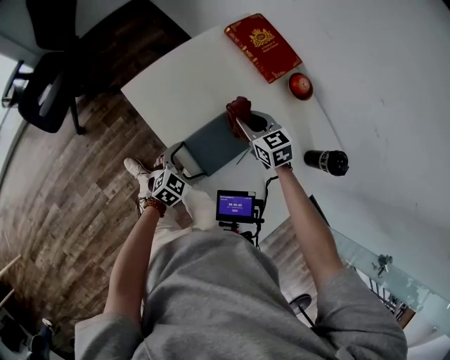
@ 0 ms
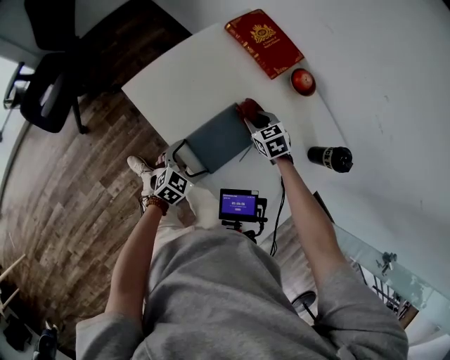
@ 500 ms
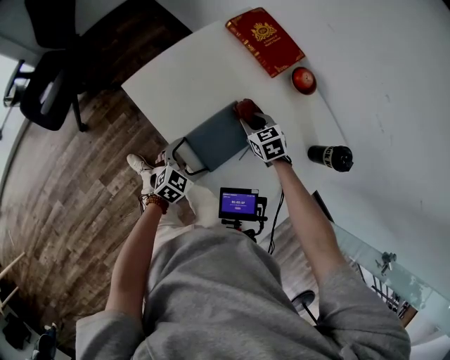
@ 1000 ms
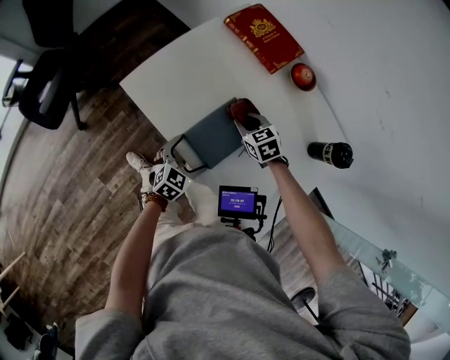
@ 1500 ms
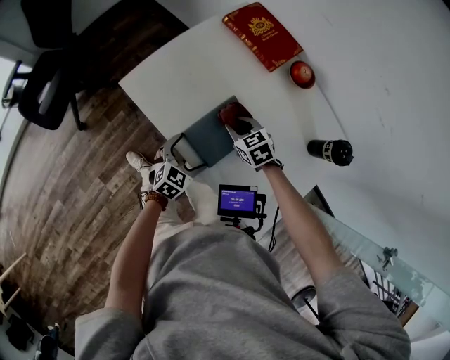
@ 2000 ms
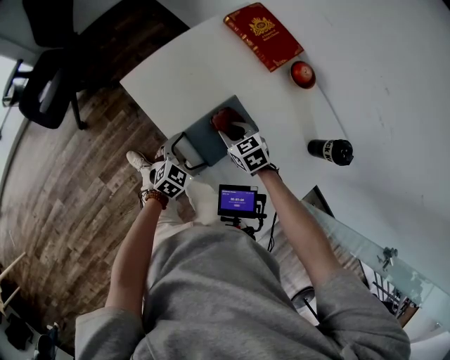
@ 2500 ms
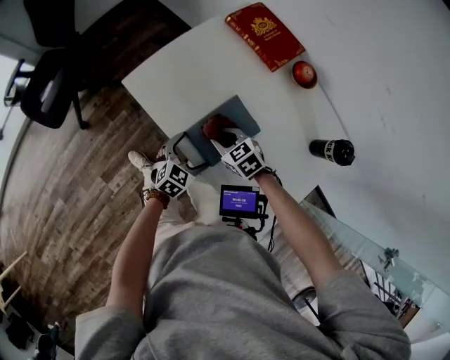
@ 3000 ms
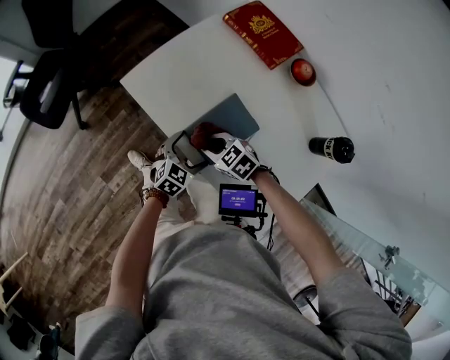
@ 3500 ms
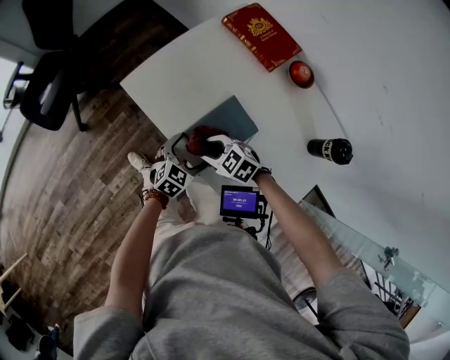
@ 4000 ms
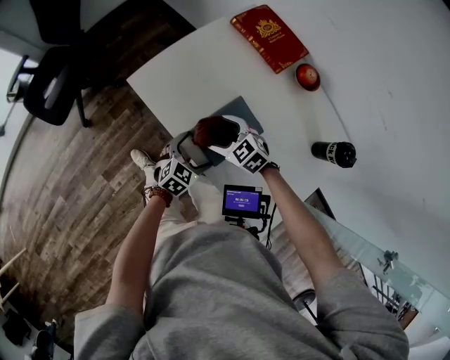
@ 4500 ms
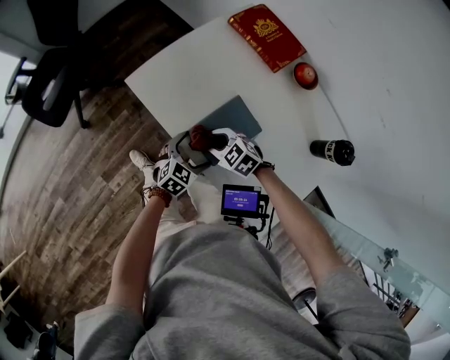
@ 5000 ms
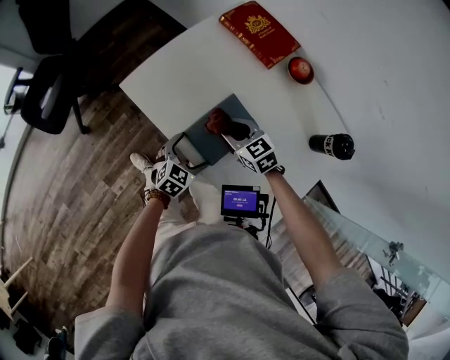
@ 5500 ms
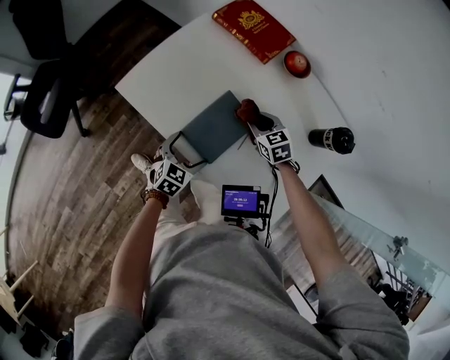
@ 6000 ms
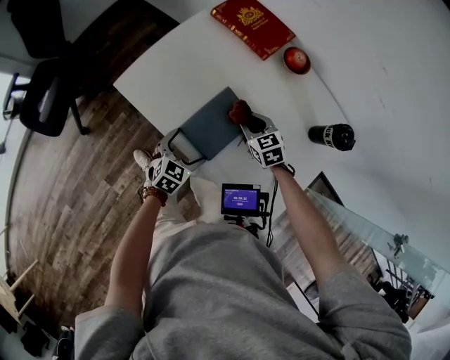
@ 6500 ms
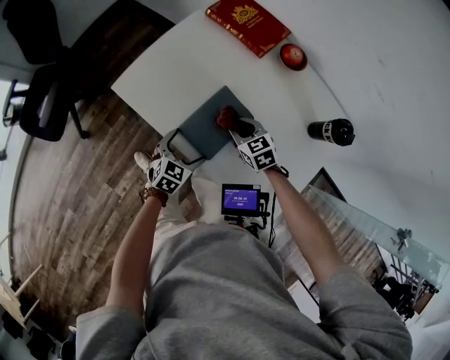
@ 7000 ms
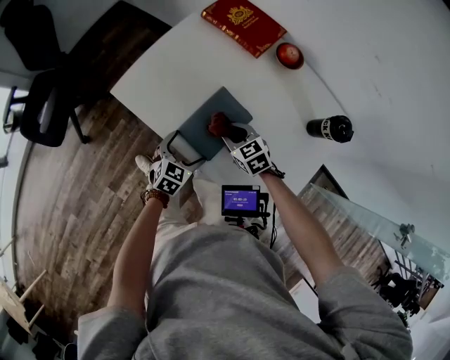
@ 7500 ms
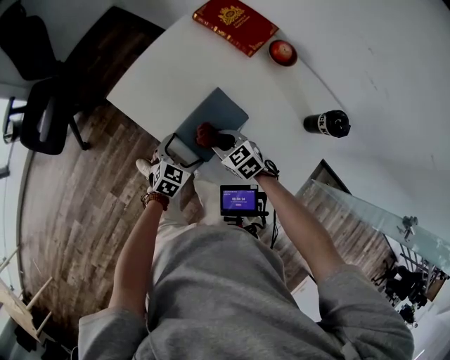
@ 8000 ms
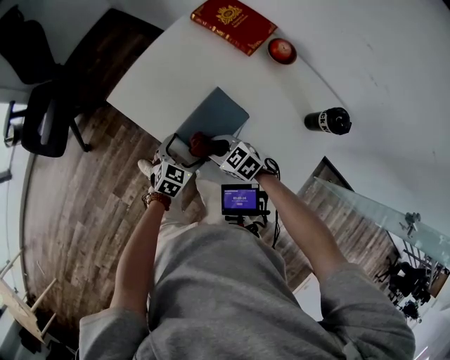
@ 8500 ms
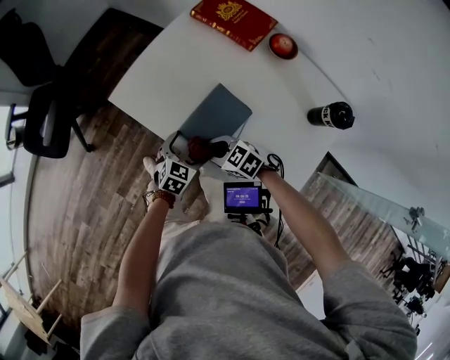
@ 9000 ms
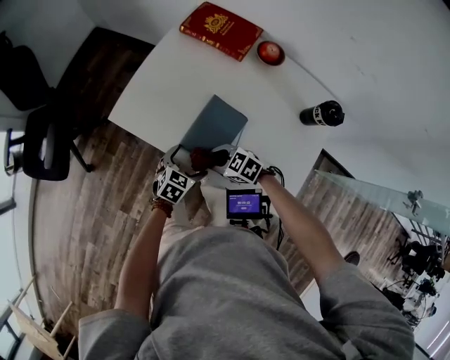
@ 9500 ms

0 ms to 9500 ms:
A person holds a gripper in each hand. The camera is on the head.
0 ms to 2000 ms: The right gripper is displaced downward by about 5 cm.
2000 ms to 4000 ms: The right gripper is displaced to the left and backward by roughly 15 cm, and rotates roughly 30 degrees.
4000 ms to 5500 ms: The right gripper moves to the right and forward, about 10 cm, turns by about 30 degrees, and opens, then closes once more.
5500 ms to 7500 ms: The right gripper reaches about 10 cm to the right, then returns.
7500 ms to 9500 ms: The right gripper shifts by approximately 10 cm, and changes its angle by approximately 20 degrees.

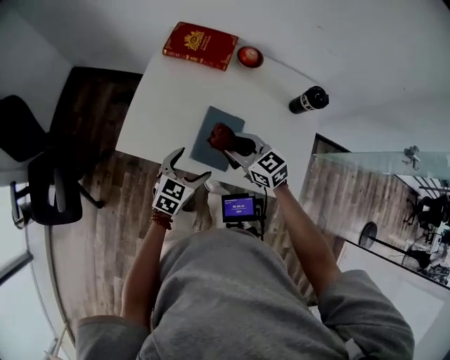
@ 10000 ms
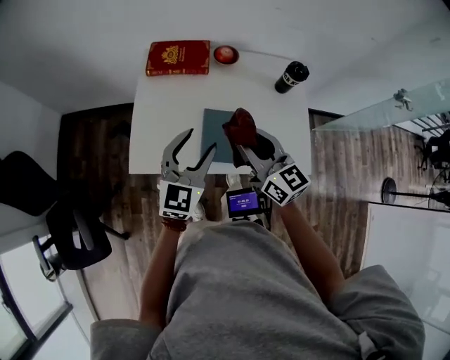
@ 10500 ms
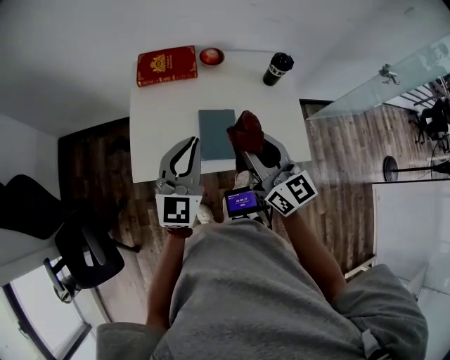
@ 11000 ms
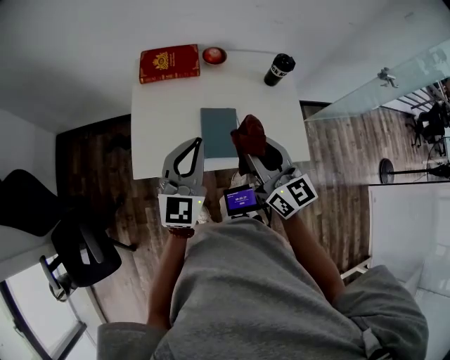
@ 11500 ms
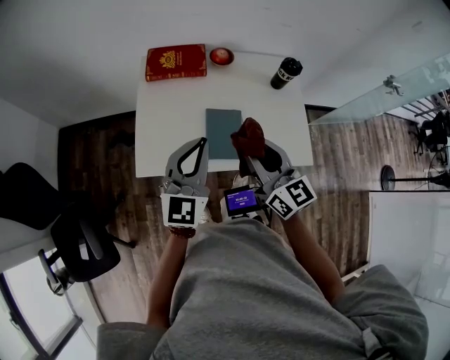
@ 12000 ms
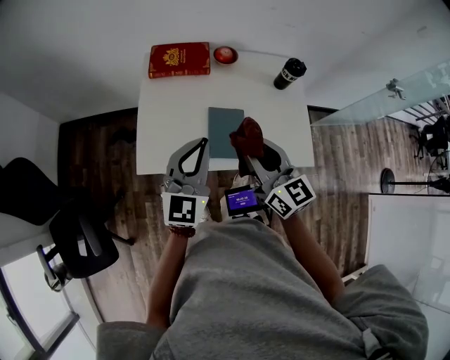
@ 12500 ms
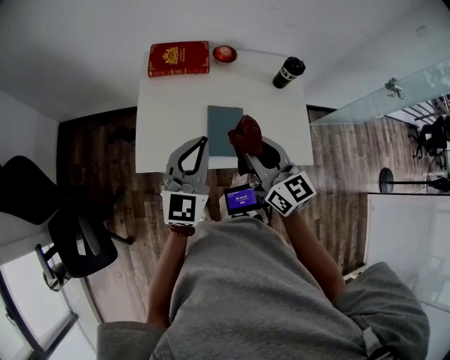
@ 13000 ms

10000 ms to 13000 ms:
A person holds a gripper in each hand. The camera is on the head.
10000 ms to 11500 ms: The left gripper moves upward, approximately 25 cm, tilts its fingers about 30 degrees upward, and closes its fingers, while the right gripper travels upward and backward by roughly 20 cm, and swivels some 50 degrees.
11500 ms to 13000 ms: The grippers move only a little.

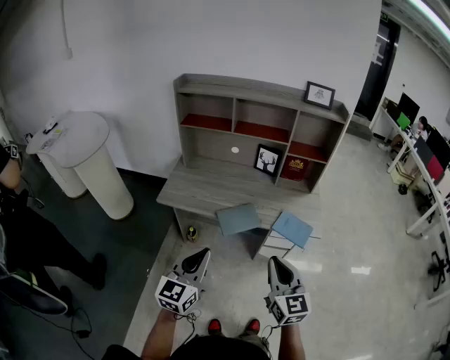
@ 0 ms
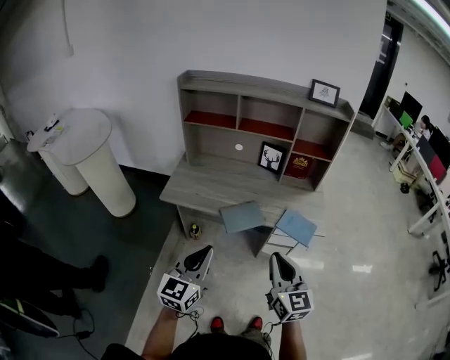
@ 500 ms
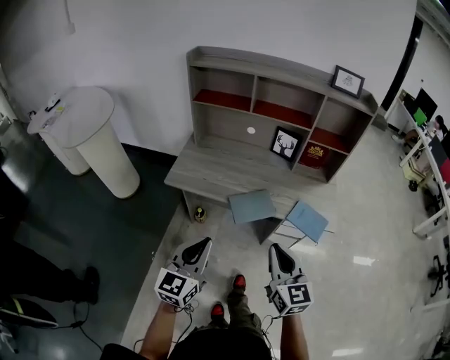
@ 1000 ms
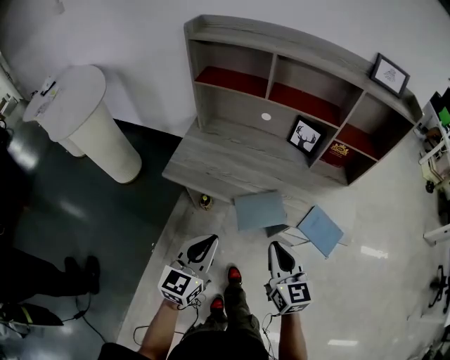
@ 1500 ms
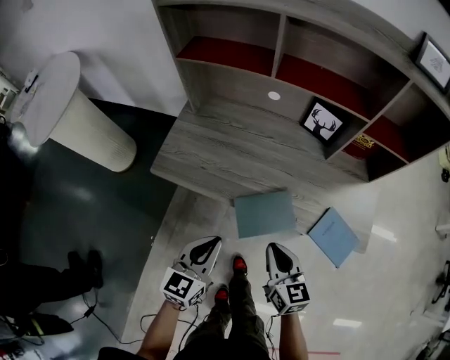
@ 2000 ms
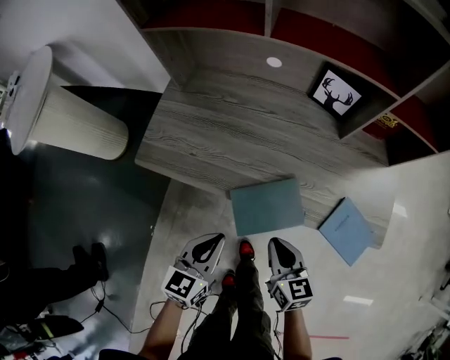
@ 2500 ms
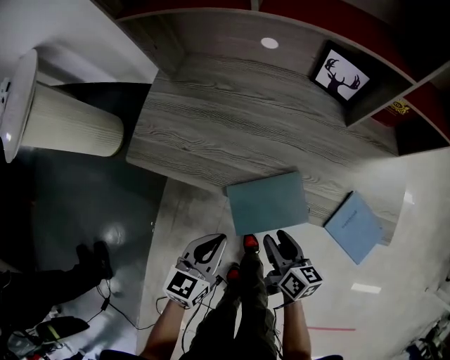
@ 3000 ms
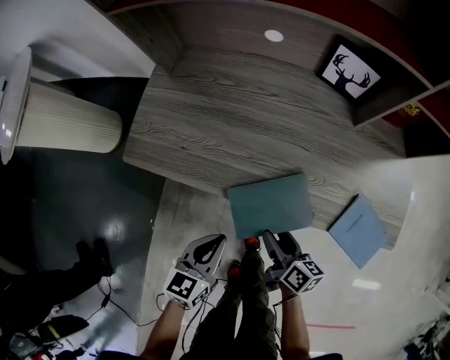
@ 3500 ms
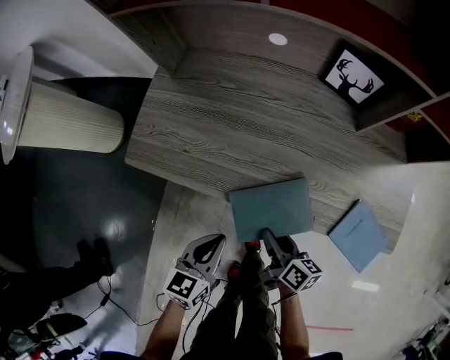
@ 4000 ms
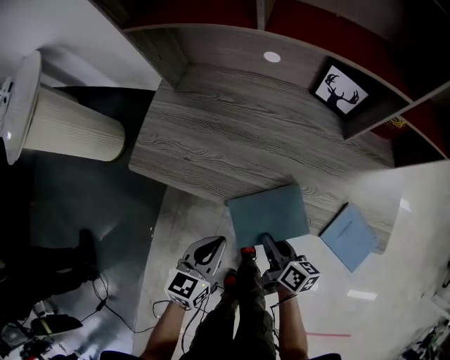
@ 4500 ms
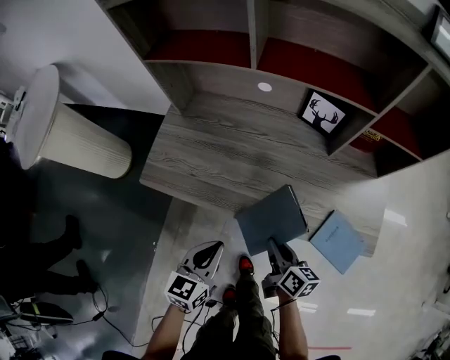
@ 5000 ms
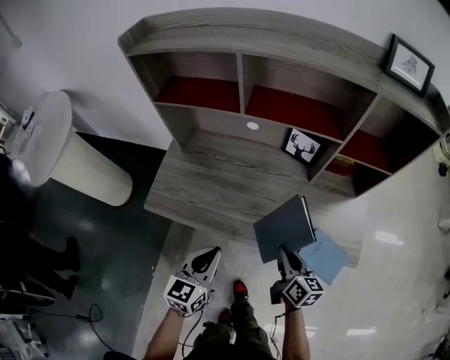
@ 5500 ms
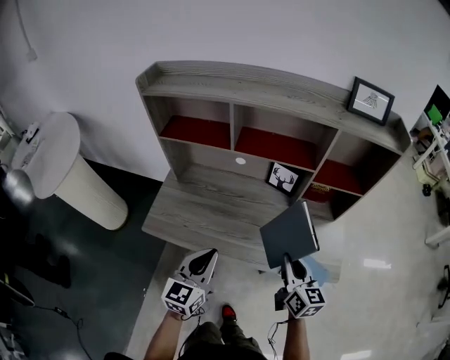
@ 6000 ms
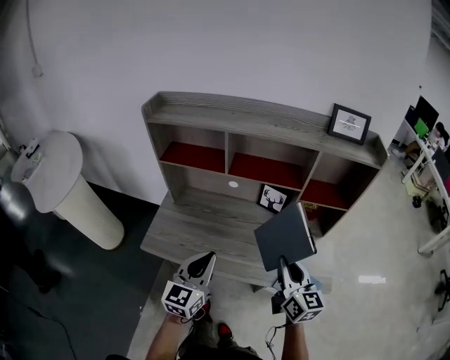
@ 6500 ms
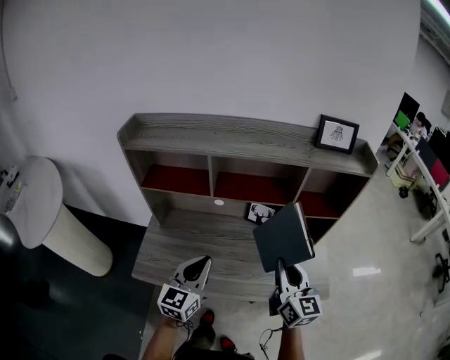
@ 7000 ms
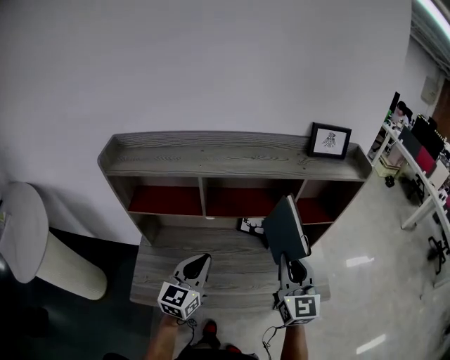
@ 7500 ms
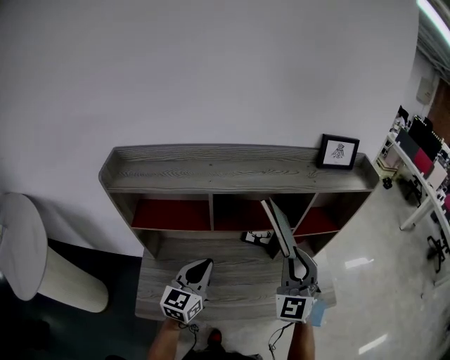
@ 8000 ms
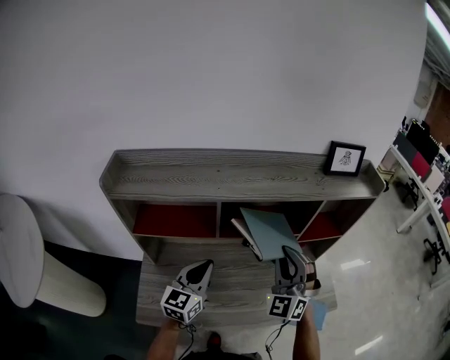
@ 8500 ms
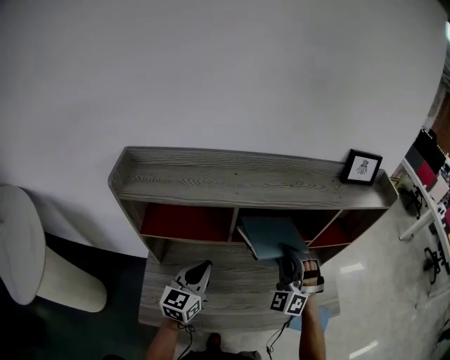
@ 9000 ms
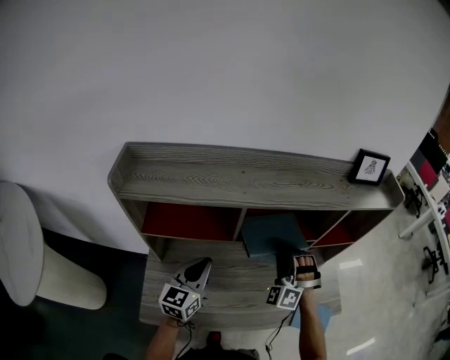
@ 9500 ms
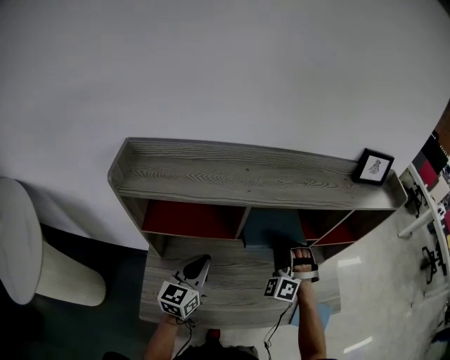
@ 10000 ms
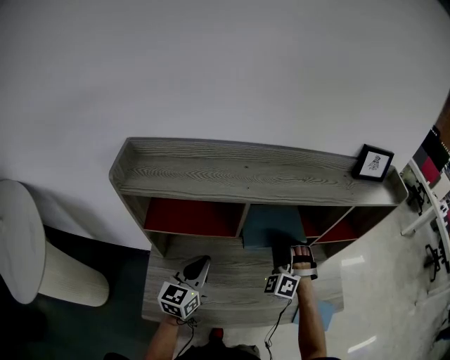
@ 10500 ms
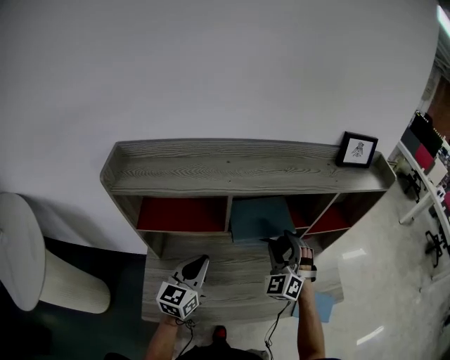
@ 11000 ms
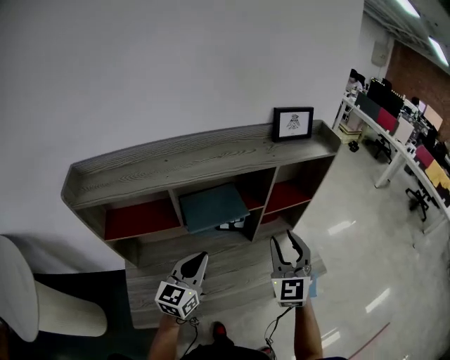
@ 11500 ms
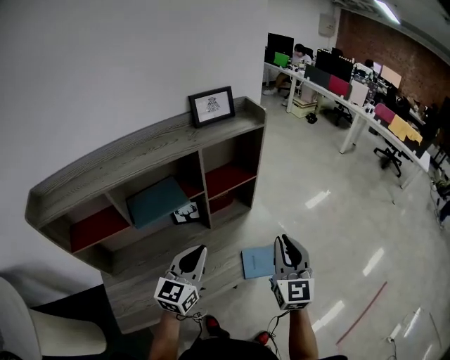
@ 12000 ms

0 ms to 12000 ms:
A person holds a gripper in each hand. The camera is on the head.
0 ms to 2000 ms: The two grippers go about 30 cm forward and downward. The right gripper turns by about 30 degrees.
2000 ms to 4000 ms: The grippers both shift downward by about 15 cm. The right gripper rolls clockwise, seen from behind, by some 40 degrees, and opens its fingers.
4000 ms to 6000 ms: The right gripper travels upward and to the right by some 35 cm, turns by approximately 40 degrees, and closes up; the left gripper heads upward, covering approximately 25 cm, and changes its angle by roughly 30 degrees.
6000 ms to 8000 ms: The right gripper moves upward and forward, about 25 cm, and twists approximately 60 degrees counterclockwise, seen from behind. Meanwhile the left gripper travels forward by approximately 20 cm.
8000 ms to 10000 ms: The left gripper heads to the left, covering roughly 10 cm, while the right gripper goes roughly 20 cm downward, to the left and forward, and rolls counterclockwise, seen from behind, by some 40 degrees.
10000 ms to 12000 ms: The right gripper travels to the right and backward by about 40 cm, rotates around the line of its fingers by some 70 degrees, clockwise from behind, and opens and closes again. The left gripper moves to the right, approximately 30 cm, and changes its angle by roughly 30 degrees.

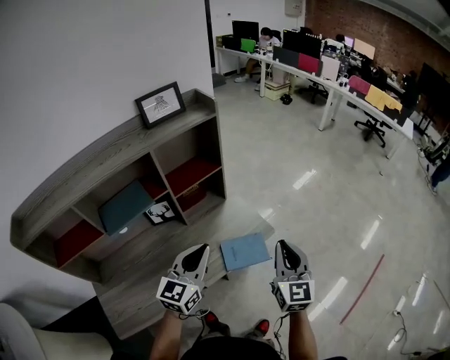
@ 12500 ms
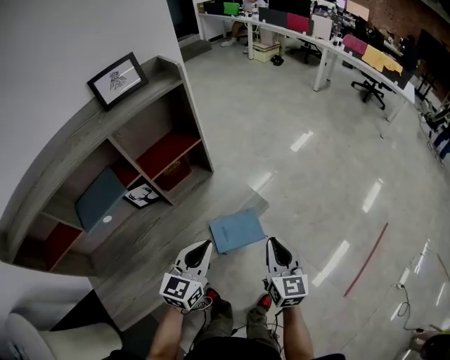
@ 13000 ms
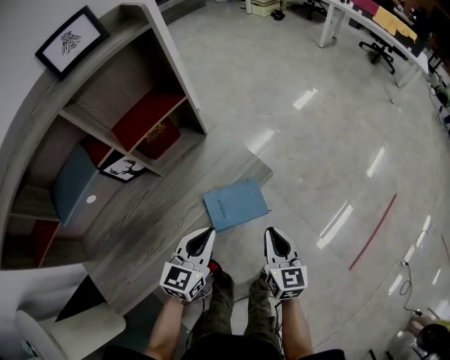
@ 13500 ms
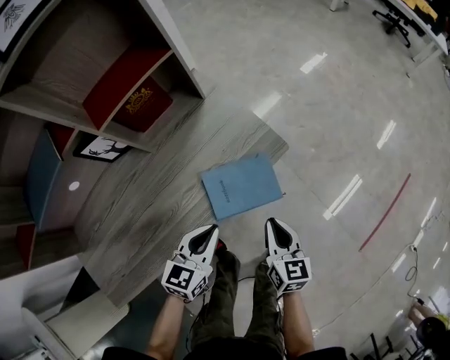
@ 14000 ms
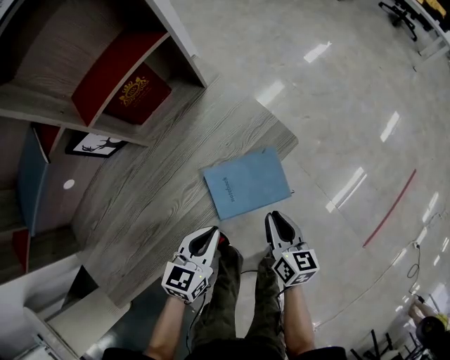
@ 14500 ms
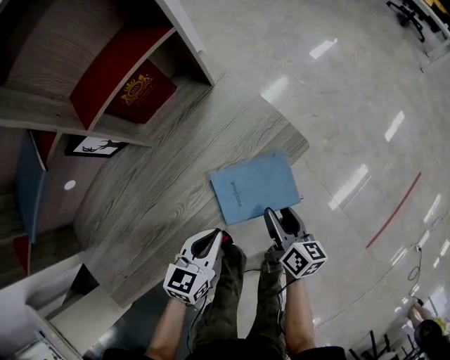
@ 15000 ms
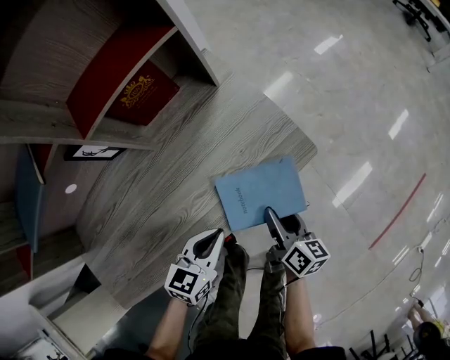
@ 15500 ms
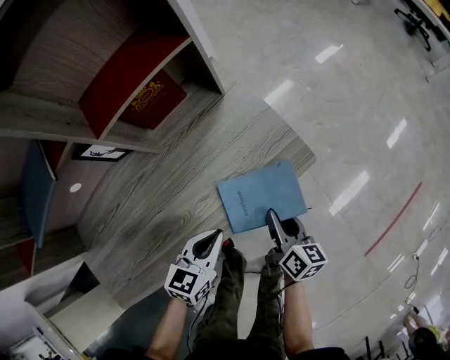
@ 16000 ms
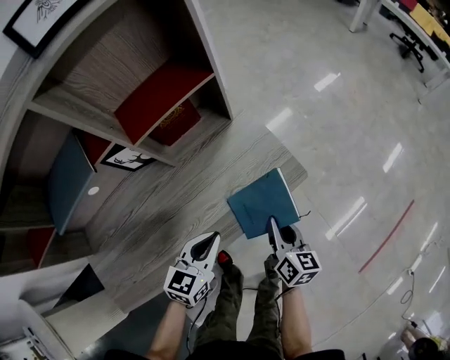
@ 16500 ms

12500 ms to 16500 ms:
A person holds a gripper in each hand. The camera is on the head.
12500 ms to 14500 ms: Both grippers move downward, approximately 35 cm. The right gripper swivels about 40 degrees, while the left gripper rotates approximately 30 degrees.
14500 ms to 16500 ms: The right gripper moves forward and upward, roughly 10 cm, and opens, then closes once more. The left gripper shifts about 5 cm upward.
